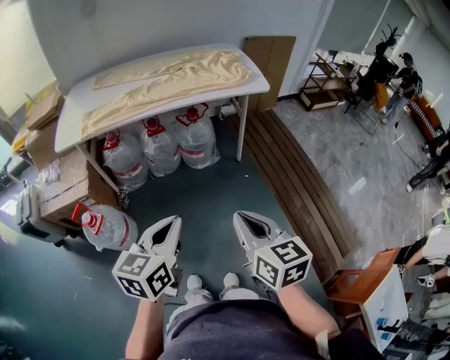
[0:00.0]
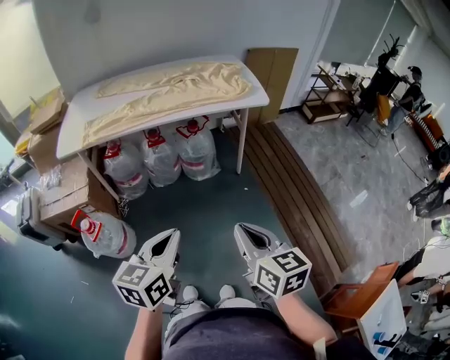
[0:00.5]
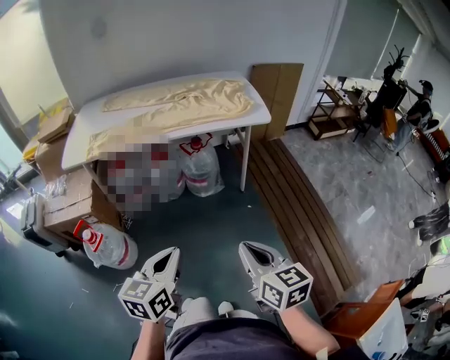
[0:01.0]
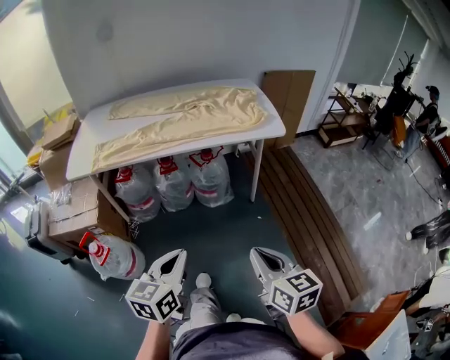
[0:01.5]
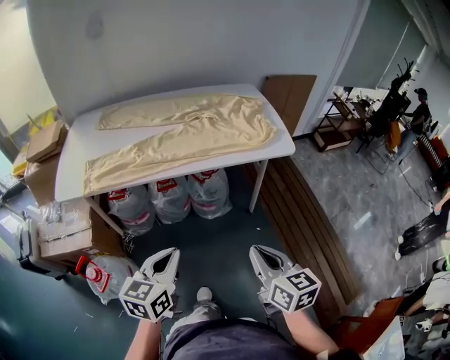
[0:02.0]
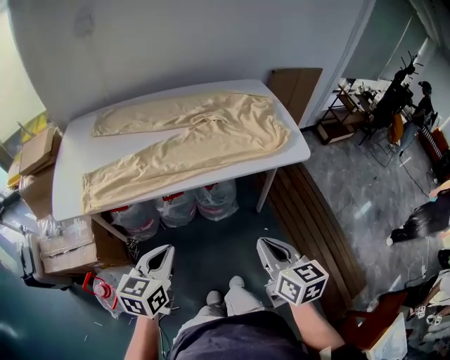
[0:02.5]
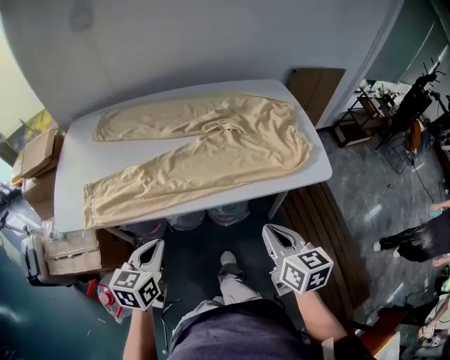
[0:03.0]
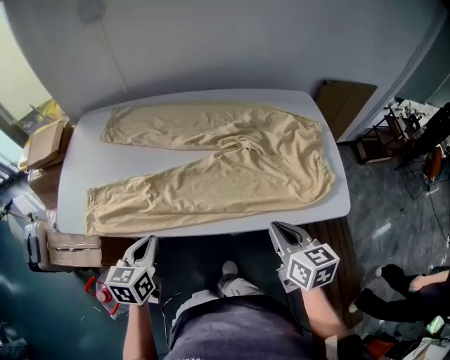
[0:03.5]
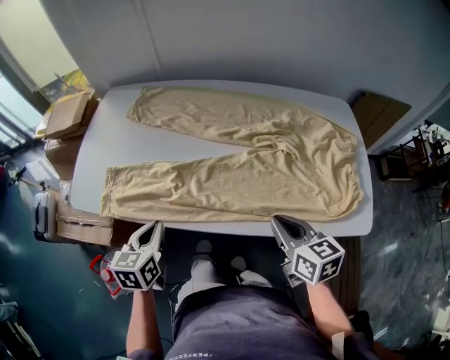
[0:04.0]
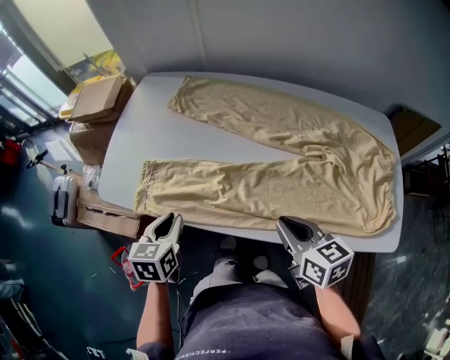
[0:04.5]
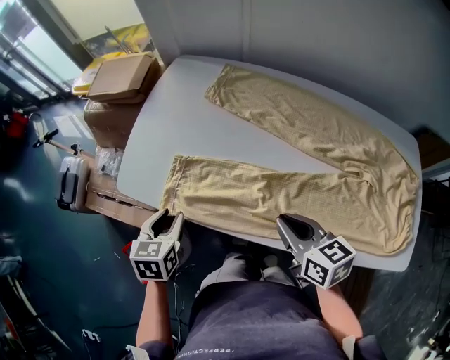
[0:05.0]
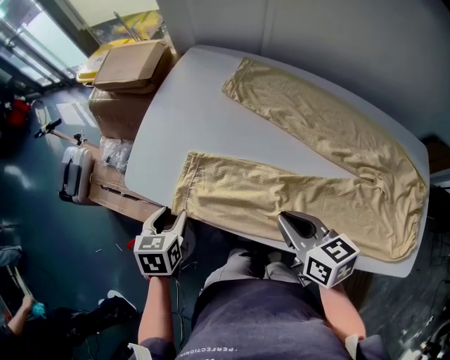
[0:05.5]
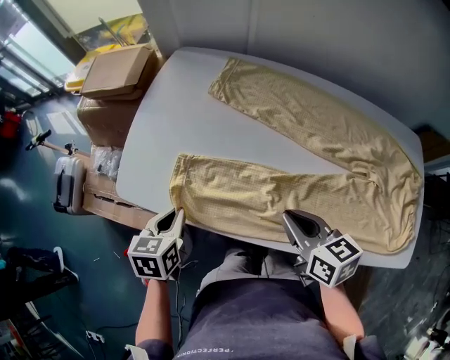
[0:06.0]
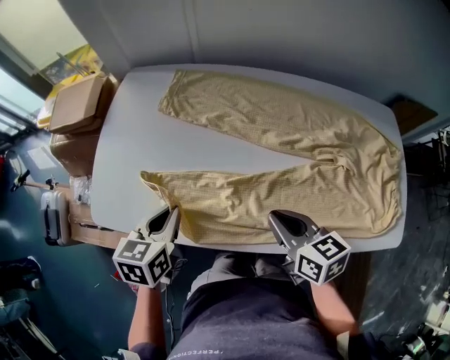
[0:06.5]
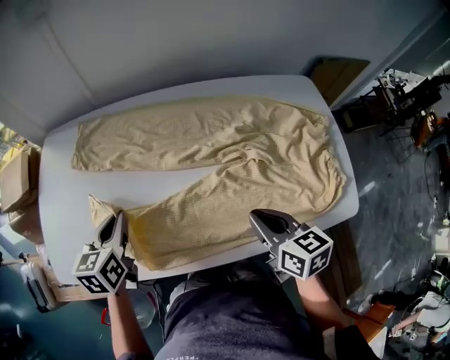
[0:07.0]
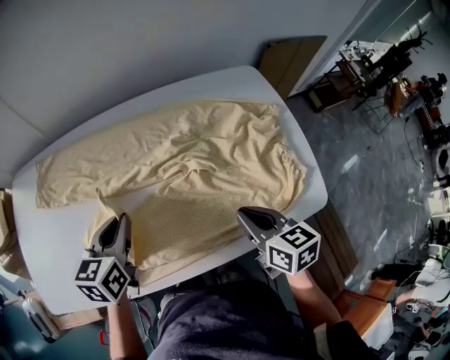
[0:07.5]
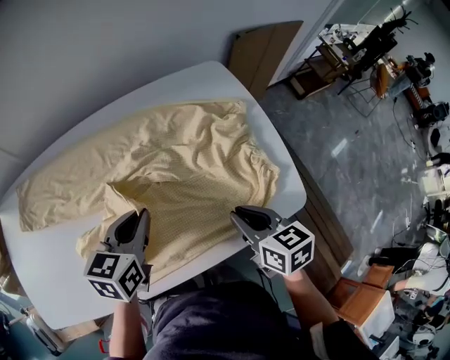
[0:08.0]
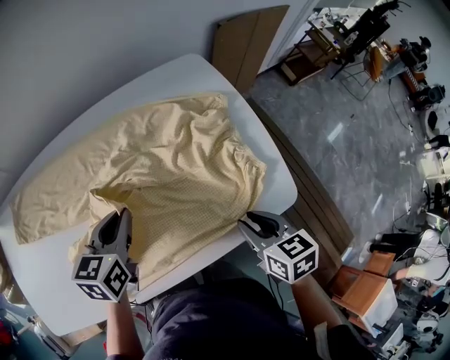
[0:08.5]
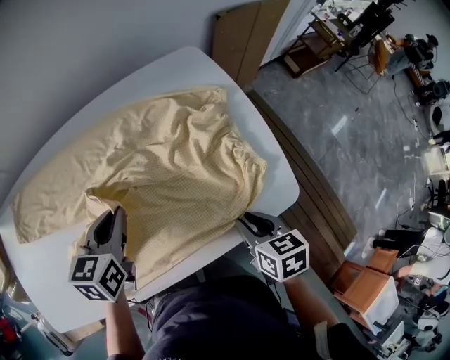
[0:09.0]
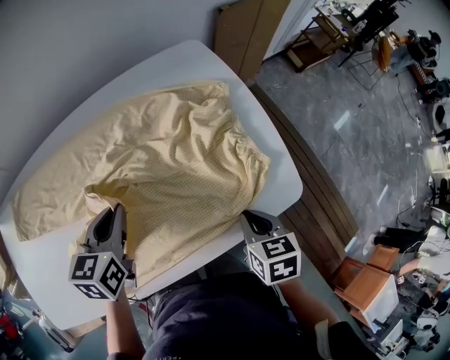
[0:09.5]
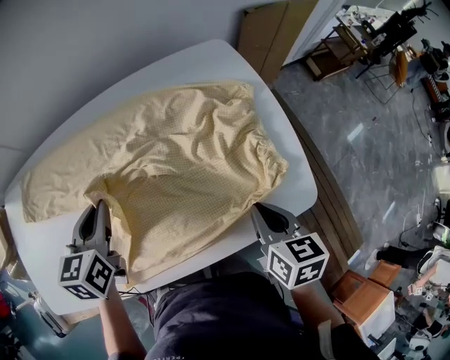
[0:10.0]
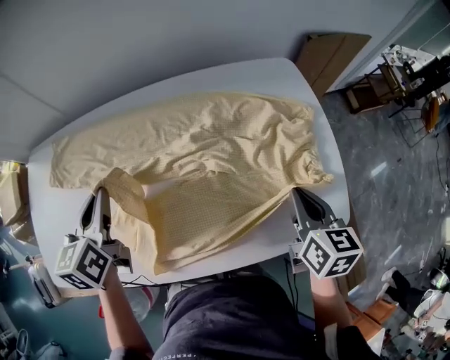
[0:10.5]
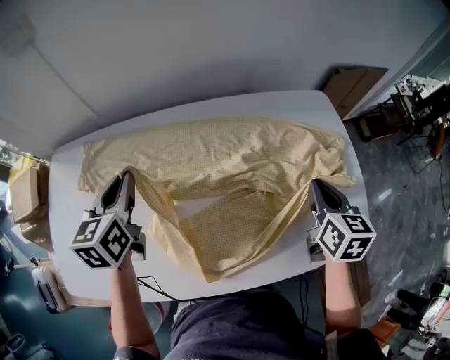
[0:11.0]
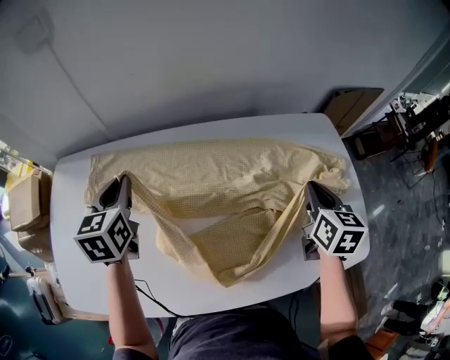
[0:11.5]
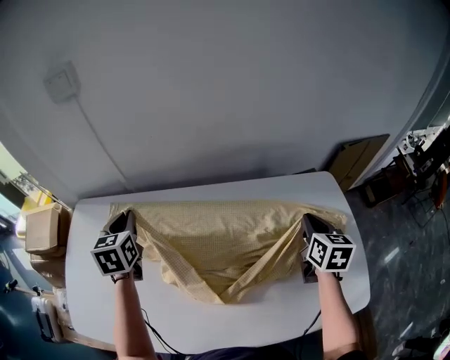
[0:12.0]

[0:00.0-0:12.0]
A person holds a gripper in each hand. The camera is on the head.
0:00.0 to 0:02.0: The grippers both shift forward by approximately 20 cm.
0:02.0 to 0:04.0: The right gripper shifts by about 40 cm, and changes its angle by roughly 20 degrees. Meanwhile the left gripper moves approximately 35 cm, and changes its angle by about 30 degrees.
0:04.0 to 0:06.0: Both grippers travel together to the left and forward, some 25 cm. The left gripper opens and closes again.
0:06.0 to 0:08.0: The two grippers travel together, some 50 cm. The left gripper swivels some 50 degrees. The right gripper changes its angle by some 40 degrees.
0:08.0 to 0:10.0: The left gripper travels to the left by roughly 10 cm. Meanwhile the right gripper is displaced to the right by roughly 5 cm.
0:10.0 to 0:12.0: The right gripper travels forward and to the left by some 30 cm. Meanwhile the left gripper moves to the left and forward, about 35 cm, and swivels approximately 30 degrees.

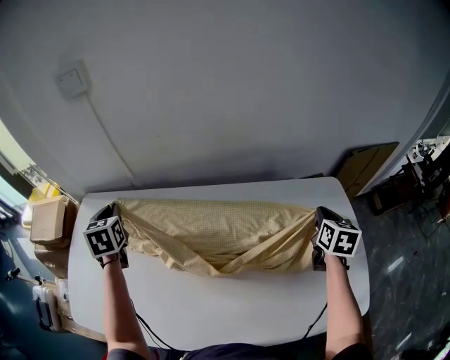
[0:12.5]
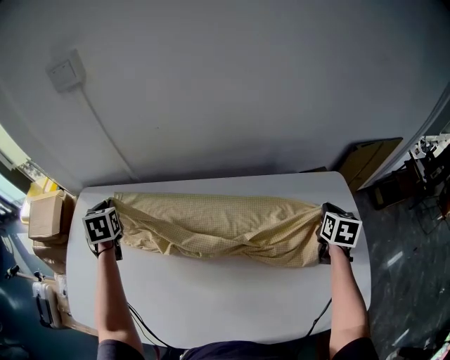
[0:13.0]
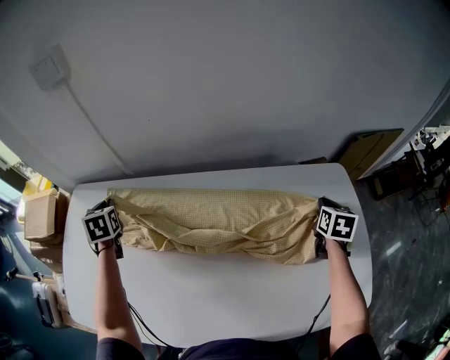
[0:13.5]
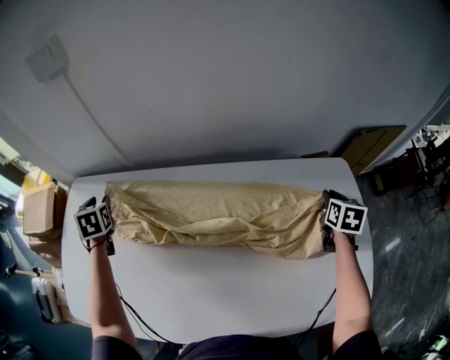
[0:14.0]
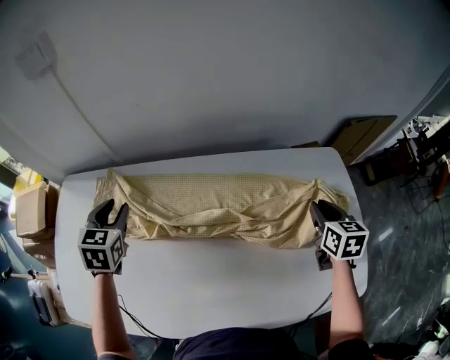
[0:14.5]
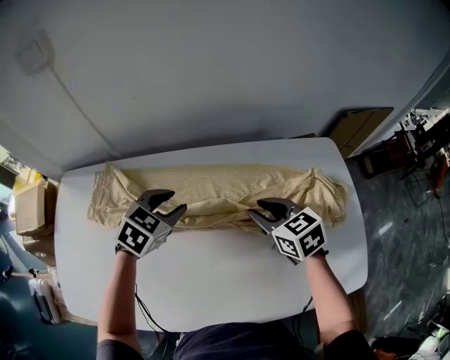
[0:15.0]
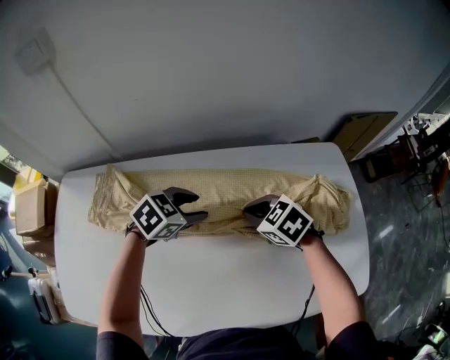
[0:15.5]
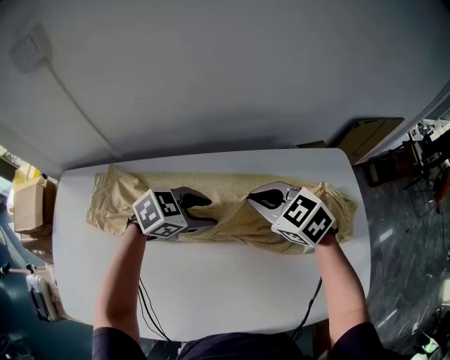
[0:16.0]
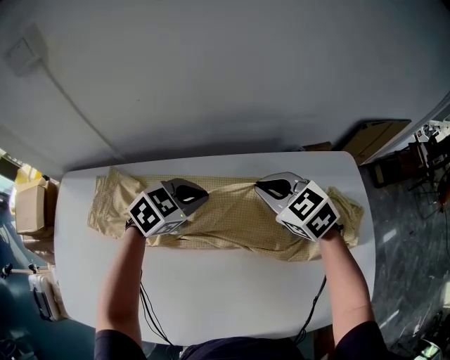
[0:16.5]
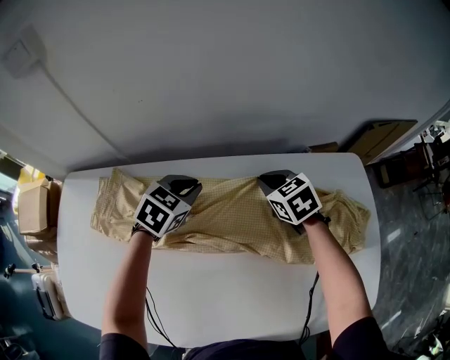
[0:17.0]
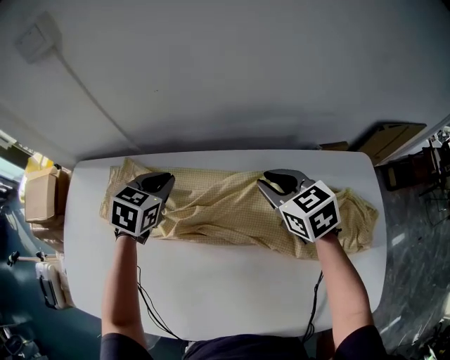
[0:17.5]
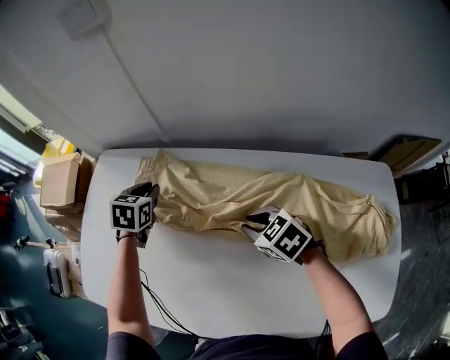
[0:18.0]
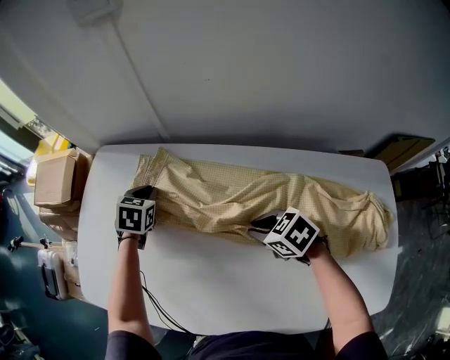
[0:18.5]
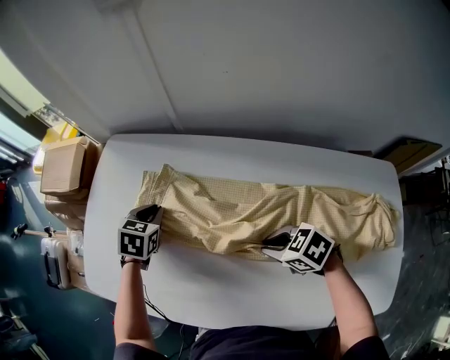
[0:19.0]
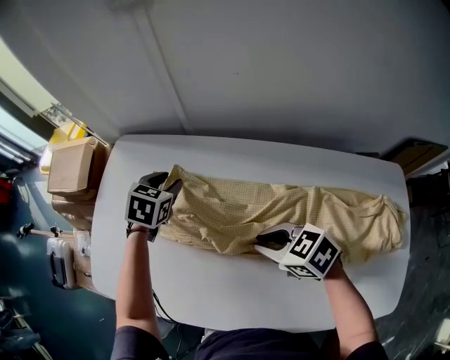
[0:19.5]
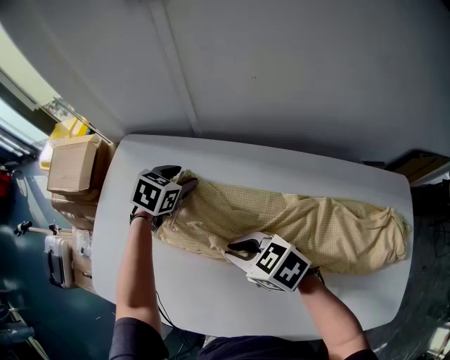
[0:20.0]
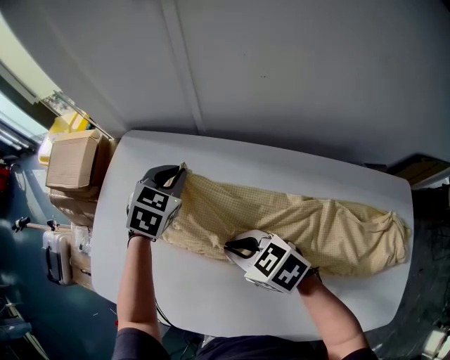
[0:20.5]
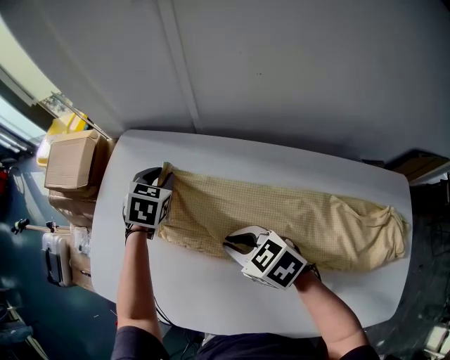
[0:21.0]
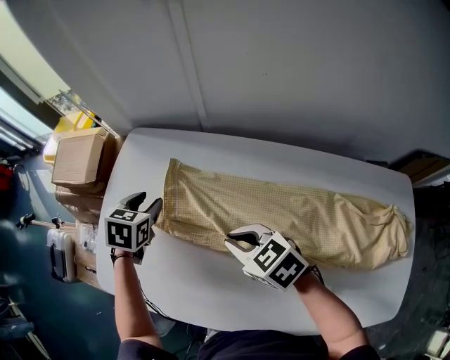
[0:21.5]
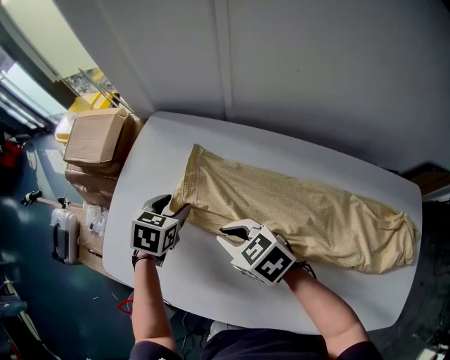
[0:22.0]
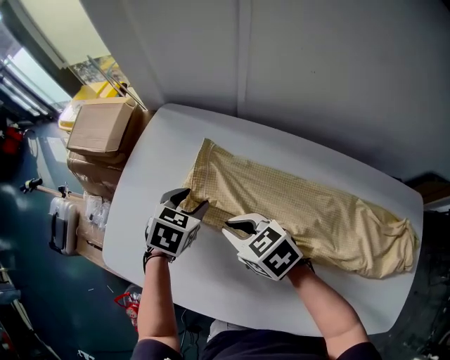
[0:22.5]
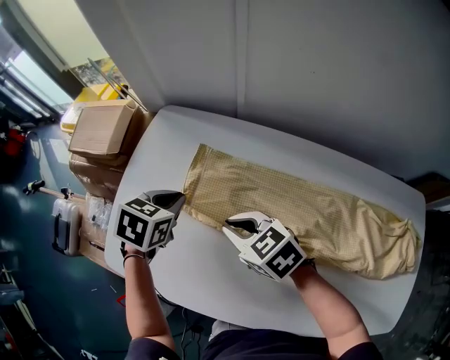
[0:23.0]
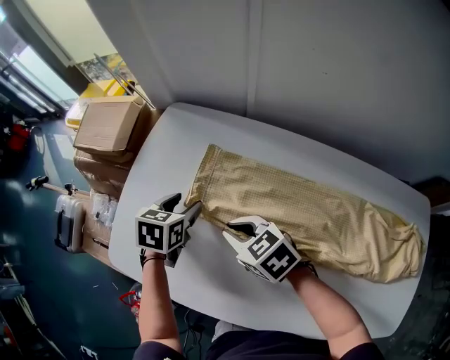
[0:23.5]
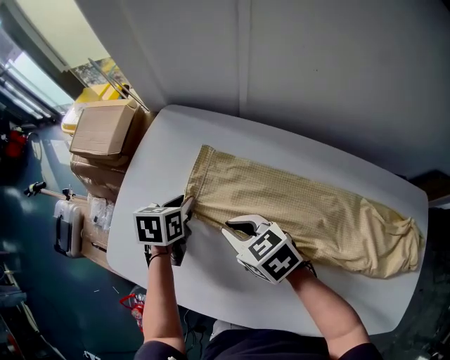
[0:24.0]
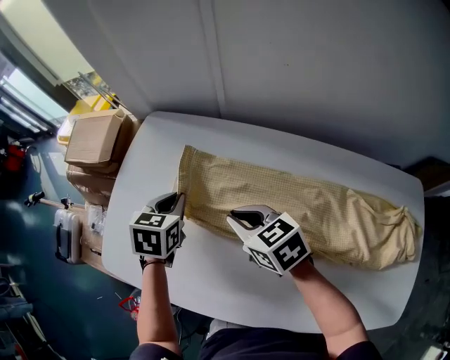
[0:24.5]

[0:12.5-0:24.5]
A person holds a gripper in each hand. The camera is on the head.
0:12.5 to 0:14.5: The right gripper changes place by roughly 5 cm, while the left gripper moves to the right, roughly 10 cm, rotates about 20 degrees, and opens up.
0:14.5 to 0:16.5: The left gripper ends up roughly 25 cm from where it was, rotates approximately 50 degrees, and closes its fingers. Meanwhile the right gripper changes place by roughly 20 cm, changes its angle by approximately 50 degrees, and closes its fingers.
0:16.5 to 0:18.5: The right gripper moves up and down over roughly 10 cm, changing direction 2 times, and changes its angle by roughly 30 degrees; the left gripper ends up about 35 cm from where it was, and rotates approximately 60 degrees.
0:18.5 to 0:20.5: The left gripper shifts roughly 5 cm upward, travels to the left and back again, about 5 cm each way, and opens, then closes once more. Meanwhile the right gripper heads to the left, covering roughly 15 cm.
0:20.5 to 0:22.5: The right gripper is displaced to the left by some 5 cm, while the left gripper is displaced to the left, backward and downward by approximately 15 cm, and opens.
0:22.5 to 0:24.5: The right gripper travels to the right by roughly 5 cm; the left gripper goes up and down, about 5 cm each way, reversing 2 times, and closes.

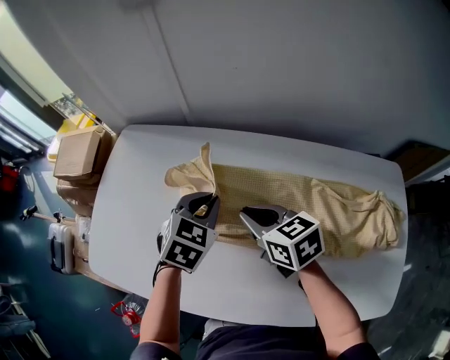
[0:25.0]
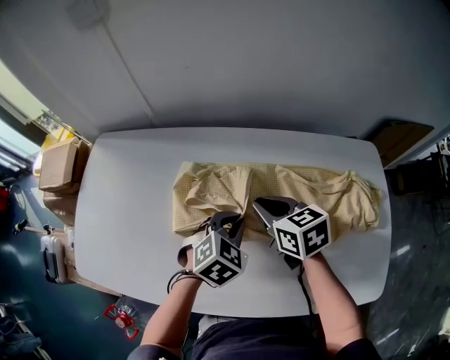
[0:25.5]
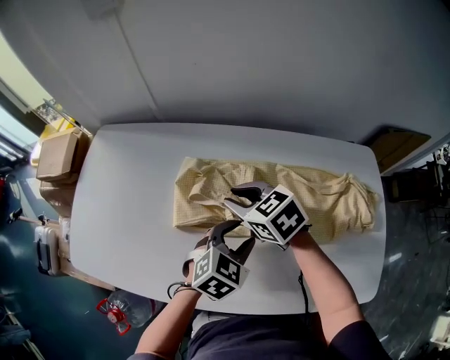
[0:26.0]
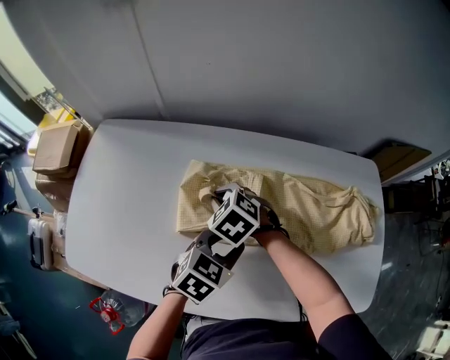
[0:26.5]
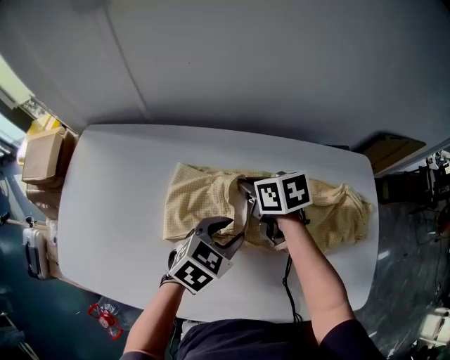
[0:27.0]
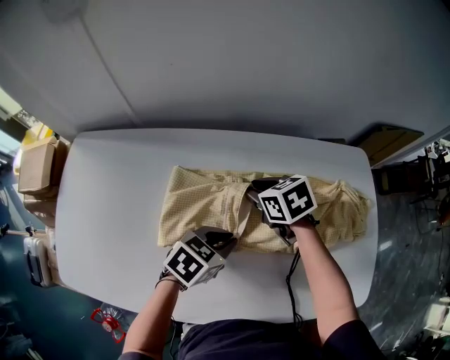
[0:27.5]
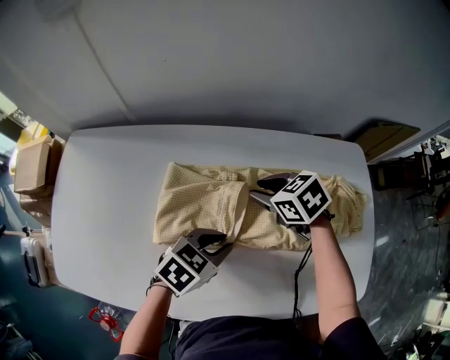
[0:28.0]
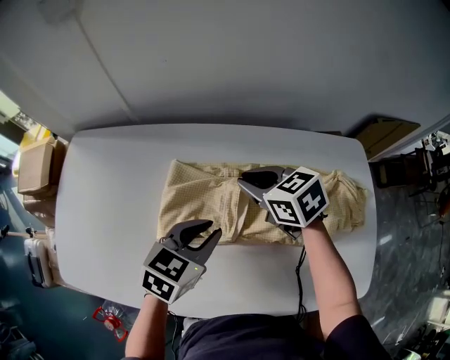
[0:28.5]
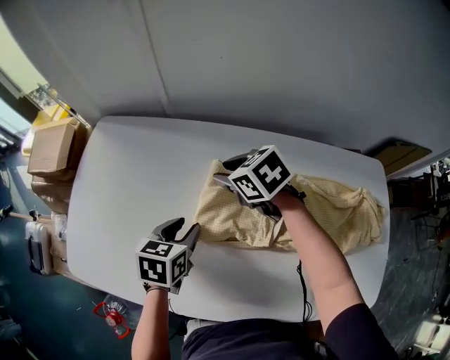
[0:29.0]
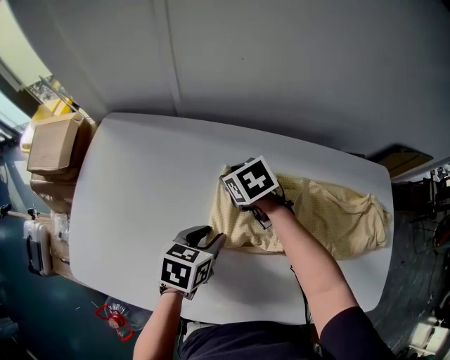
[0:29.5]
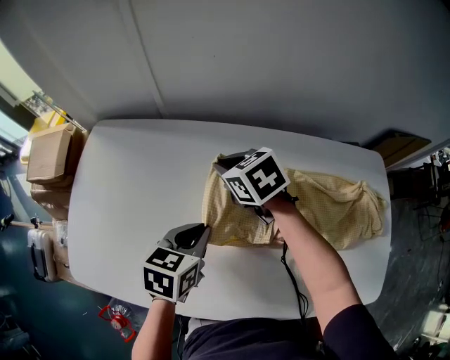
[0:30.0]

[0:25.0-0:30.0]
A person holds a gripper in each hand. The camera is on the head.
0:25.0 to 0:27.5: The right gripper ends up some 20 cm from where it was, and rotates roughly 20 degrees. Meanwhile the left gripper ends up about 20 cm from where it was, swivels roughly 40 degrees, and opens, then closes again.
0:27.5 to 0:30.0: The right gripper goes up and down, roughly 10 cm each way, reversing 2 times, and closes. The left gripper swings up and down, some 10 cm each way, with 2 reversals, swivels some 30 degrees, and opens, then closes once more.
